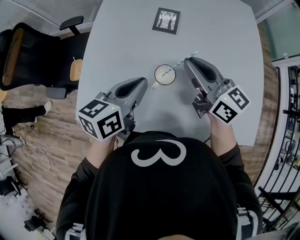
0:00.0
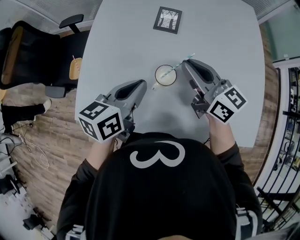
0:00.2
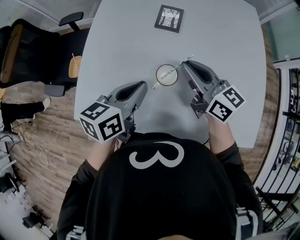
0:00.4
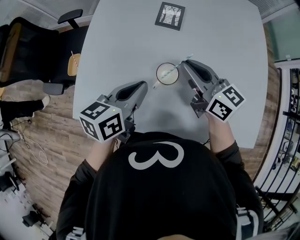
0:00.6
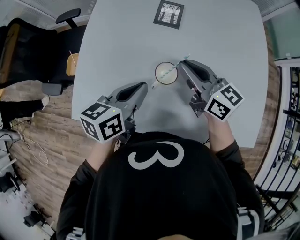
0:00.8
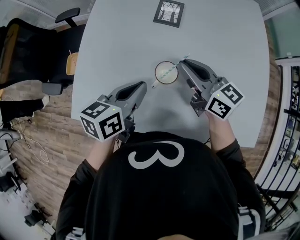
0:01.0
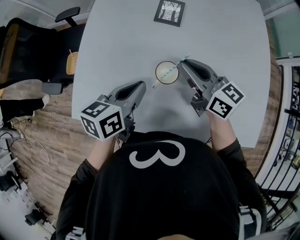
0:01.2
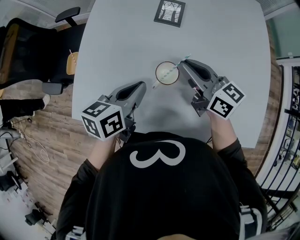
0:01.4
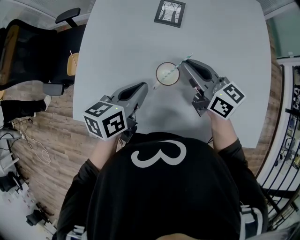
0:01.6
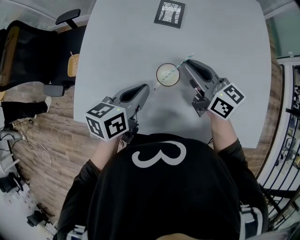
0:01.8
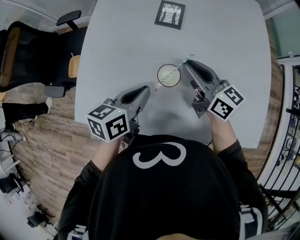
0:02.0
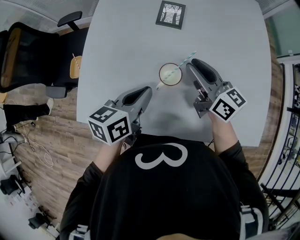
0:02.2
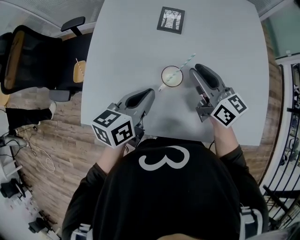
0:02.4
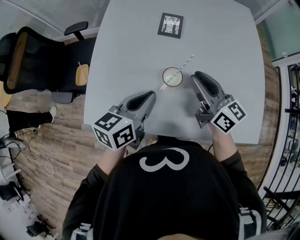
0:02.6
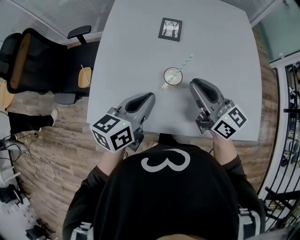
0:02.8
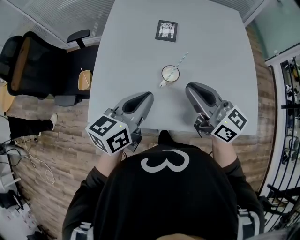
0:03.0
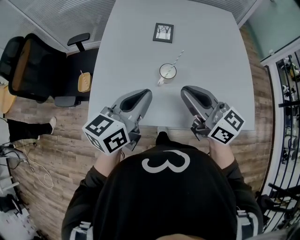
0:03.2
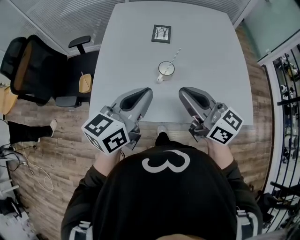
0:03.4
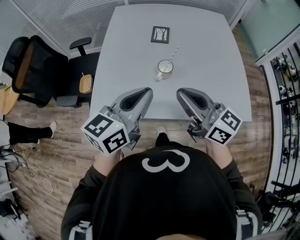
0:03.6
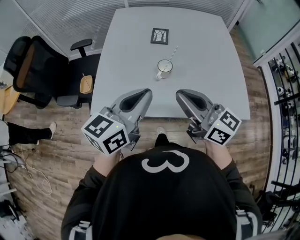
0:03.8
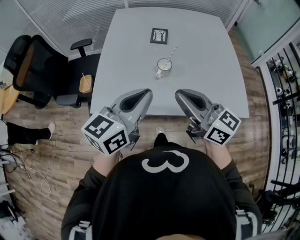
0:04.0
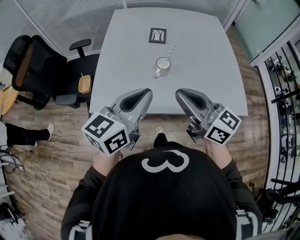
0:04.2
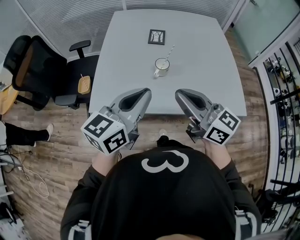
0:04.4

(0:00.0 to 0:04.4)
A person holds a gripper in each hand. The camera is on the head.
0:00.0 - 0:01.4: The two grippers go about 5 cm downward.
0:01.4 - 0:03.0: The left gripper heads upward and backward, covering approximately 15 cm; the right gripper goes about 15 cm backward and upward.
0:03.0 - 0:04.4: The left gripper shifts roughly 15 cm backward and upward. The right gripper is displaced backward by roughly 15 cm.

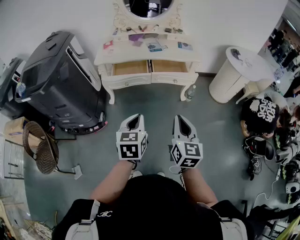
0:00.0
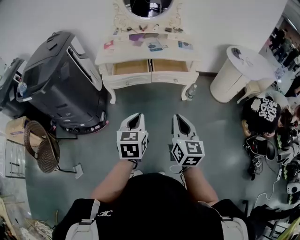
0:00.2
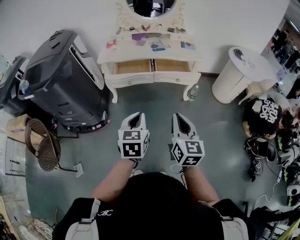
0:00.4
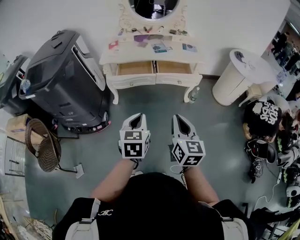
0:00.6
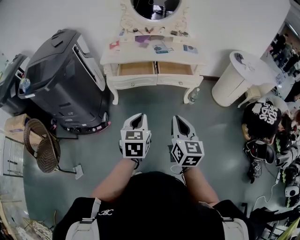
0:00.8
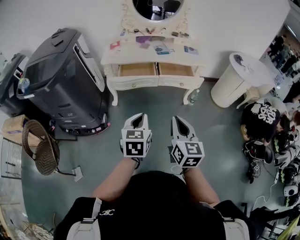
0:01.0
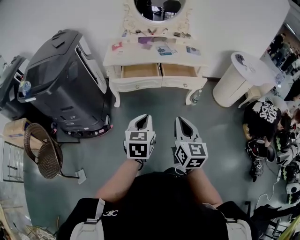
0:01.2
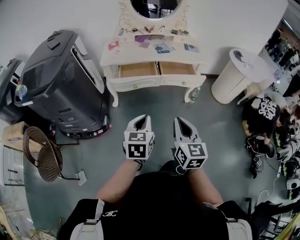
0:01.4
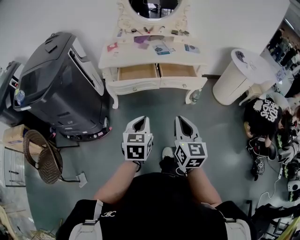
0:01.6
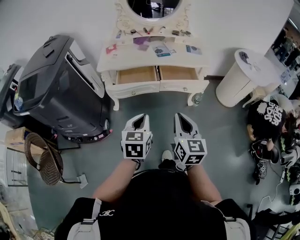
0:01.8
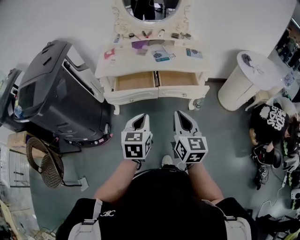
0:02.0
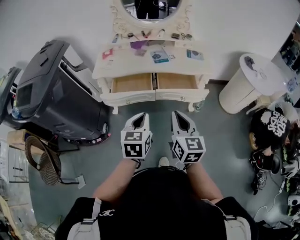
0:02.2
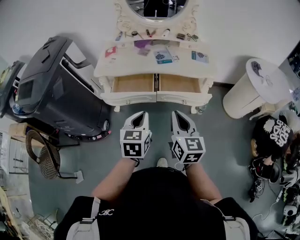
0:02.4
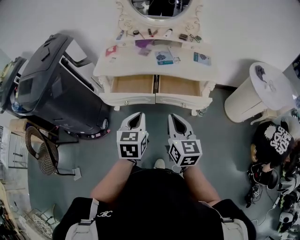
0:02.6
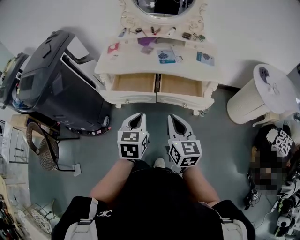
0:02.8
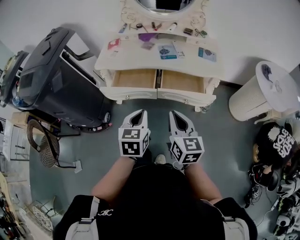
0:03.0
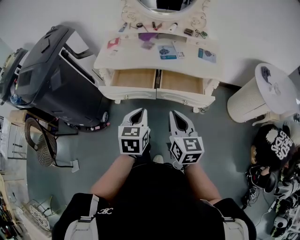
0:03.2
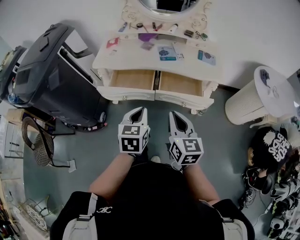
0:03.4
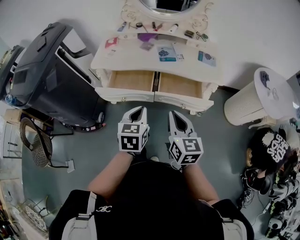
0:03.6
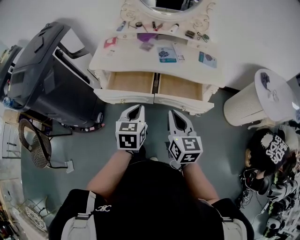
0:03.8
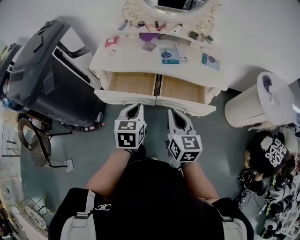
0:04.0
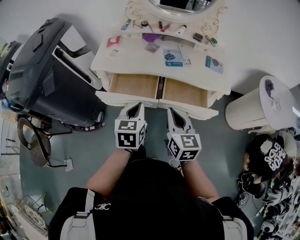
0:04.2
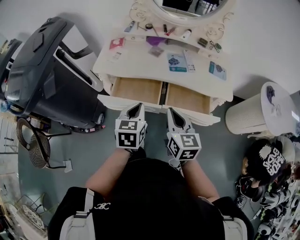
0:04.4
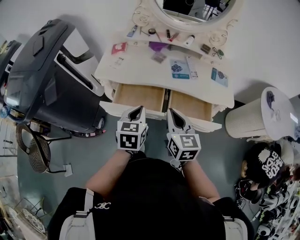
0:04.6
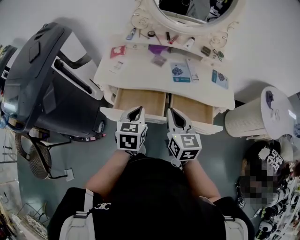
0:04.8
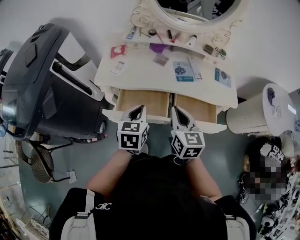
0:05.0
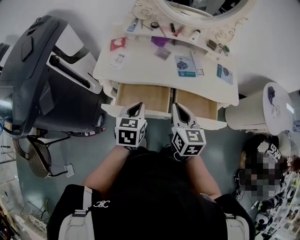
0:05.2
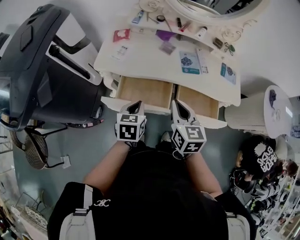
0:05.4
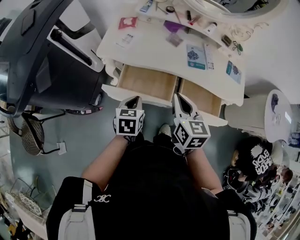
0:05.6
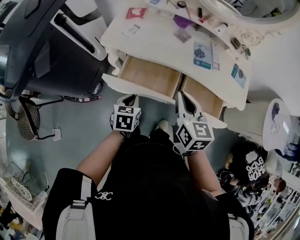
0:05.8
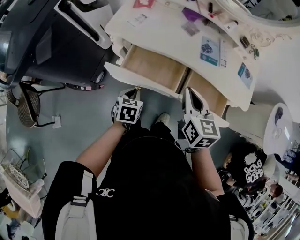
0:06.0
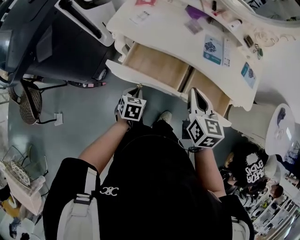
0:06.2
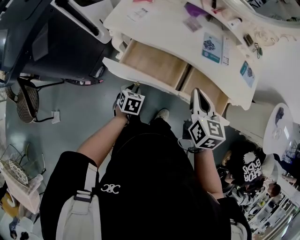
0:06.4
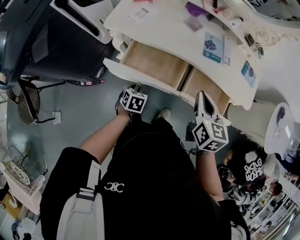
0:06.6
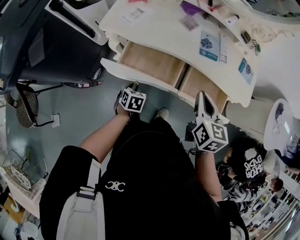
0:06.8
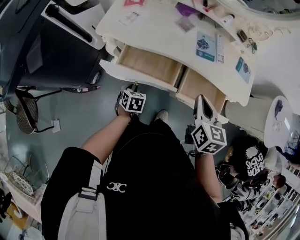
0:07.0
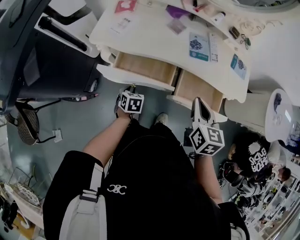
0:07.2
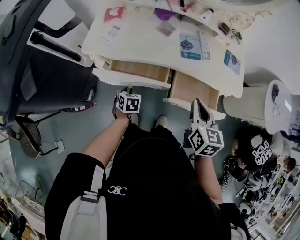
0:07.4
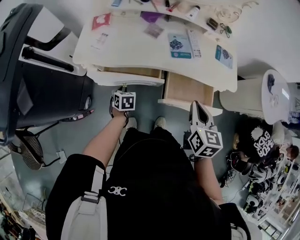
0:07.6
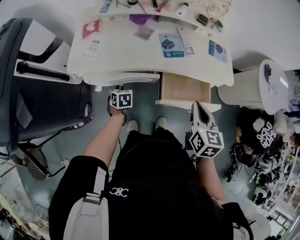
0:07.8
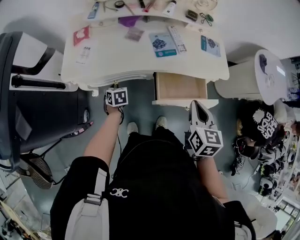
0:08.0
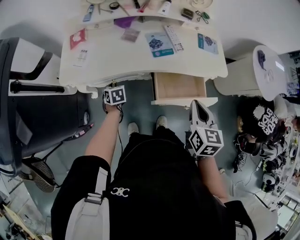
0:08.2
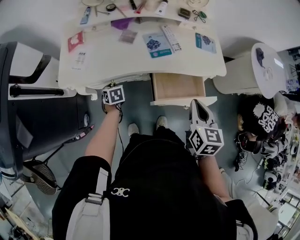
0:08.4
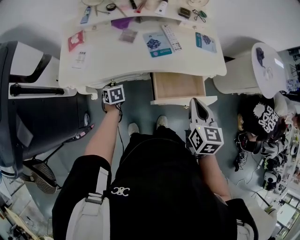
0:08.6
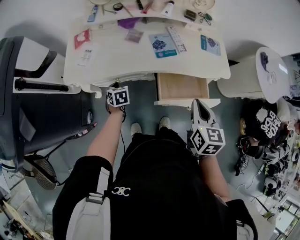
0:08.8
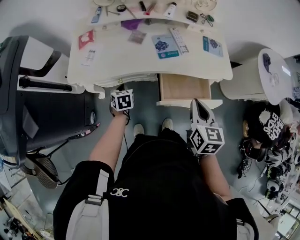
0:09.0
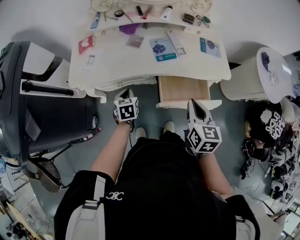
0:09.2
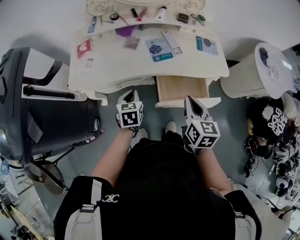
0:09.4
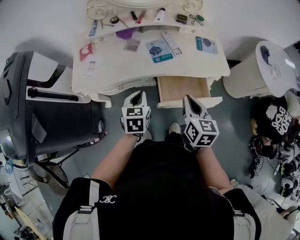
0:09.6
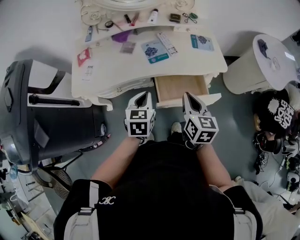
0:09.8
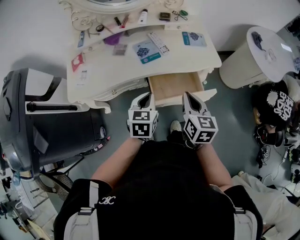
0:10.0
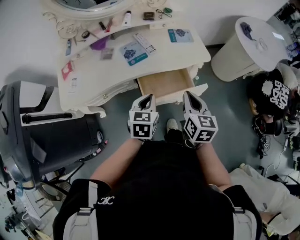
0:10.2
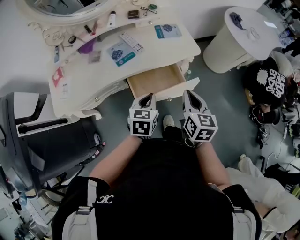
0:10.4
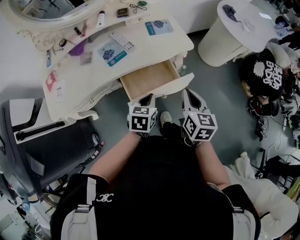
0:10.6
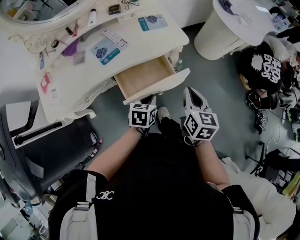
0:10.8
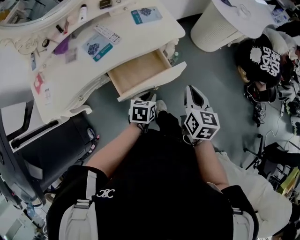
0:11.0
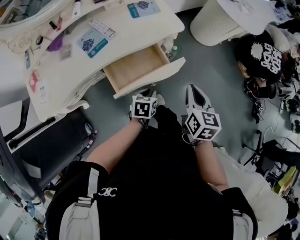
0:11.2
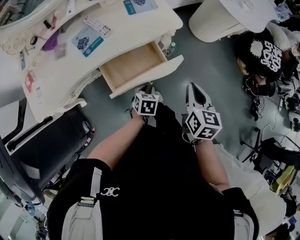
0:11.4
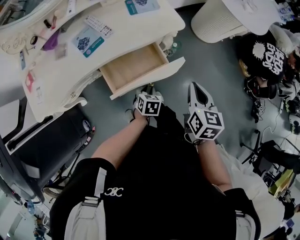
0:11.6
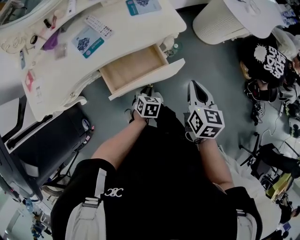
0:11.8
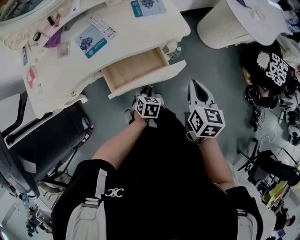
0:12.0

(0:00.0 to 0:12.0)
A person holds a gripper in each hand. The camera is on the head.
0:00.0 - 0:01.6: The left gripper moves forward and to the left, about 10 cm. The right gripper goes some 10 cm to the left and forward.
0:01.6 - 0:03.0: Both grippers move forward and to the right, roughly 20 cm.
0:03.0 - 0:04.4: Both grippers move forward, about 15 cm.
0:04.4 - 0:06.0: The left gripper is displaced downward and to the left by some 20 cm, and changes its angle by about 20 degrees. Meanwhile the right gripper travels forward by some 10 cm.
0:06.0 - 0:07.6: The left gripper heads forward and downward, covering approximately 15 cm. Meanwhile the right gripper moves to the right, approximately 10 cm, and swivels approximately 20 degrees.
0:07.6 - 0:09.0: The left gripper heads forward, covering approximately 5 cm.
0:09.0 - 0:10.4: The right gripper ends up approximately 15 cm from where it was. Meanwhile the left gripper ends up roughly 35 cm from where it was, and turns by roughly 40 degrees.
0:10.4 - 0:12.0: The right gripper is displaced to the right and forward by some 10 cm. The left gripper travels downward and to the right by about 20 cm, and rotates some 20 degrees.

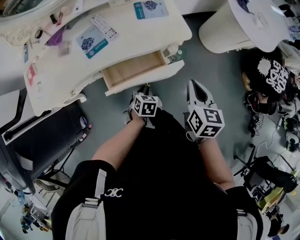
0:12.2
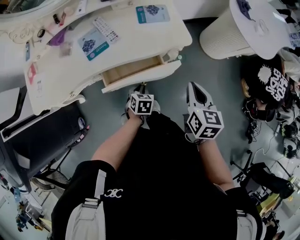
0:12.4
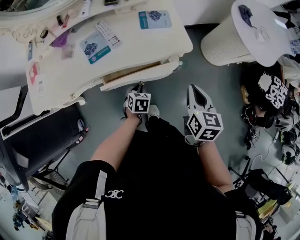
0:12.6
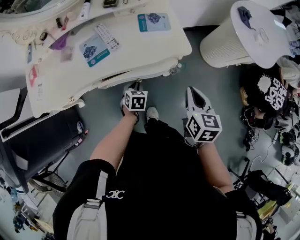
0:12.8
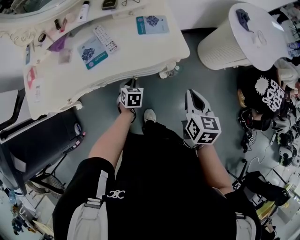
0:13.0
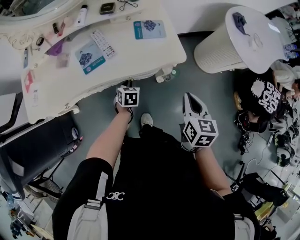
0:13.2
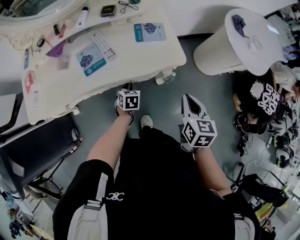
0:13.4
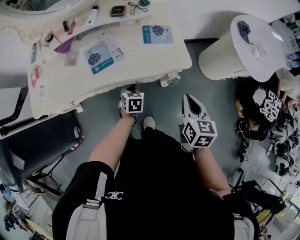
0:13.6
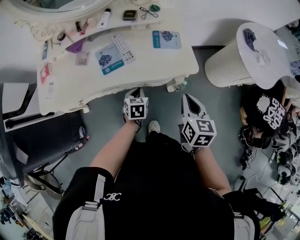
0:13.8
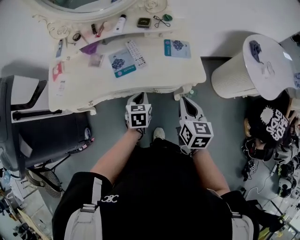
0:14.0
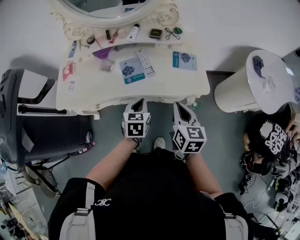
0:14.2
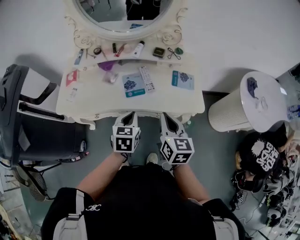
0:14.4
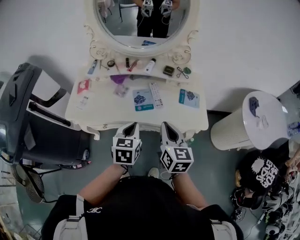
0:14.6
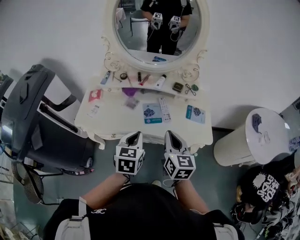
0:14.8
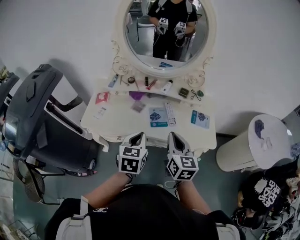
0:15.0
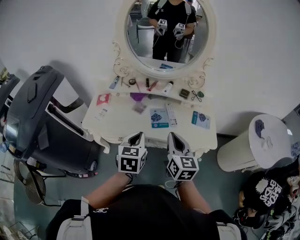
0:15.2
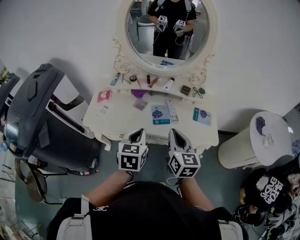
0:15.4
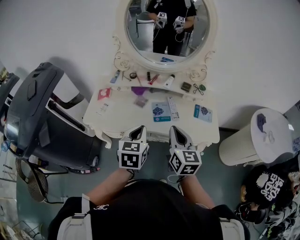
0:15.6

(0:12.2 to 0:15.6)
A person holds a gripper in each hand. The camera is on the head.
0:12.2 - 0:13.8: The right gripper is displaced forward by about 5 cm; the left gripper is displaced forward, upward and to the left by some 15 cm, and turns by roughly 20 degrees.
0:13.8 - 0:15.6: The left gripper travels upward and to the left by roughly 35 cm, and changes its angle by about 30 degrees. The right gripper travels to the left and upward by about 30 cm, and changes its angle by some 30 degrees.

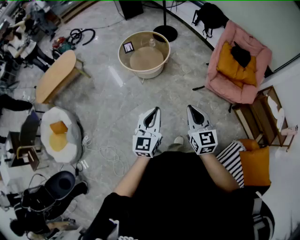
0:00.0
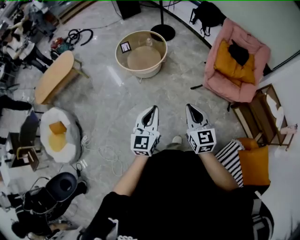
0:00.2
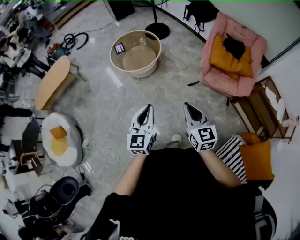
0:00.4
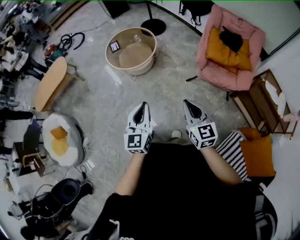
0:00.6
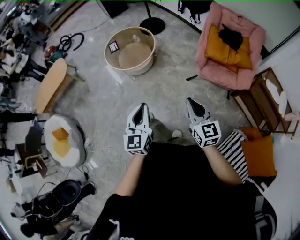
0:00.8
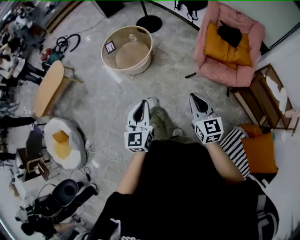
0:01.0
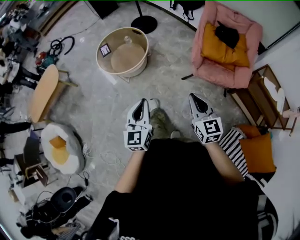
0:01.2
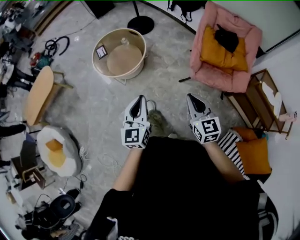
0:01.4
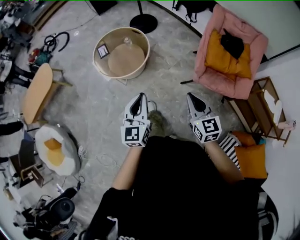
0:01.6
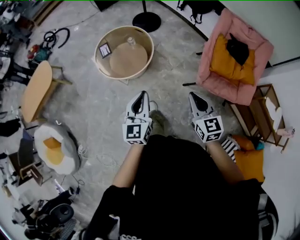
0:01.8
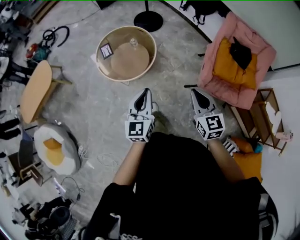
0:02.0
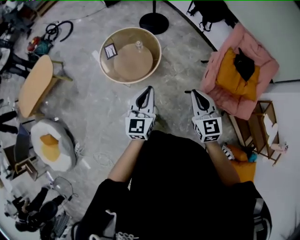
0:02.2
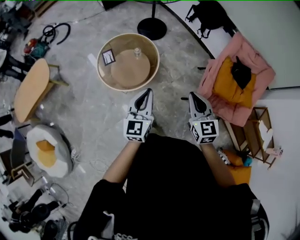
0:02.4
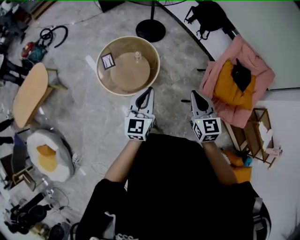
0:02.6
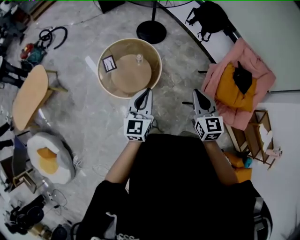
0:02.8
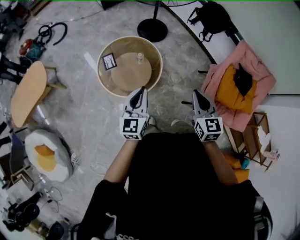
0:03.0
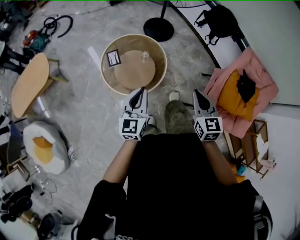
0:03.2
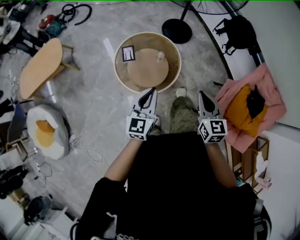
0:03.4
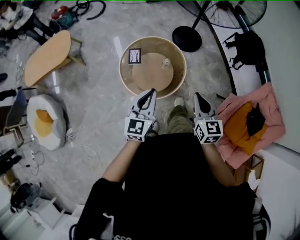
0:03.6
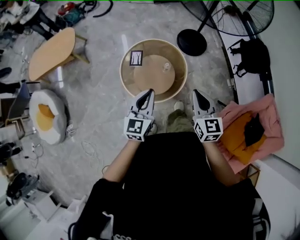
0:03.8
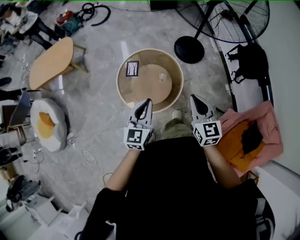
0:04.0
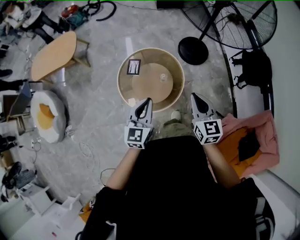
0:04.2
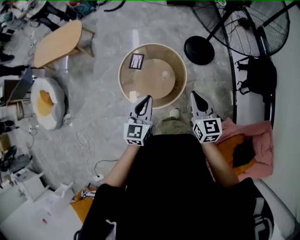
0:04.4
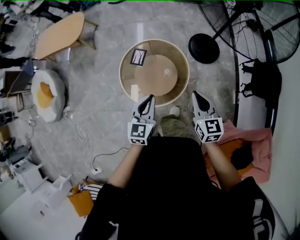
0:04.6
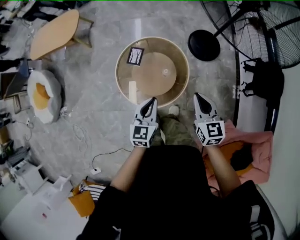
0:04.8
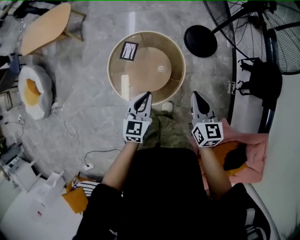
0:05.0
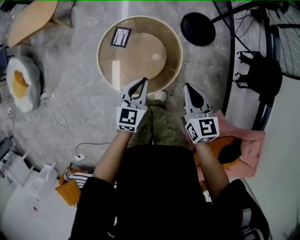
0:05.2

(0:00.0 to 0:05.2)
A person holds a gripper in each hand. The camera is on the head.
0:00.0 - 0:01.8: Both grippers move forward, some 35 cm.
0:01.8 - 0:03.4: The grippers both shift forward and to the left by some 35 cm.
0:03.4 - 0:05.2: The right gripper moves about 35 cm, and rotates some 30 degrees. Meanwhile the left gripper moves approximately 35 cm, and turns by roughly 30 degrees.
